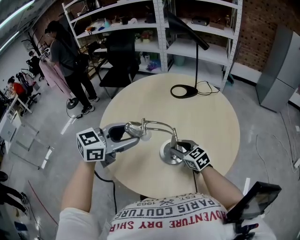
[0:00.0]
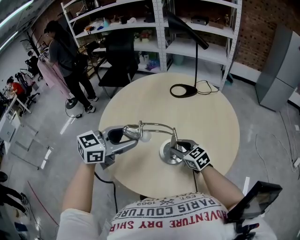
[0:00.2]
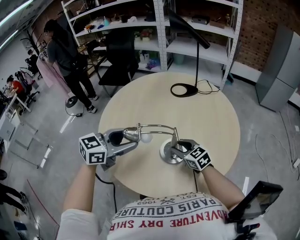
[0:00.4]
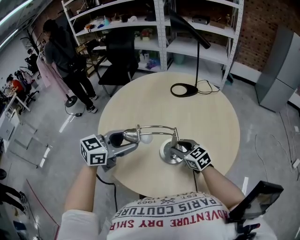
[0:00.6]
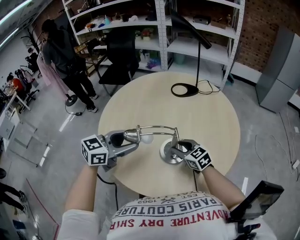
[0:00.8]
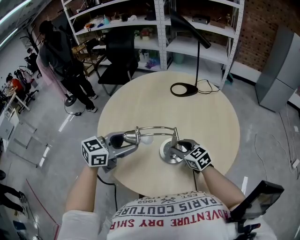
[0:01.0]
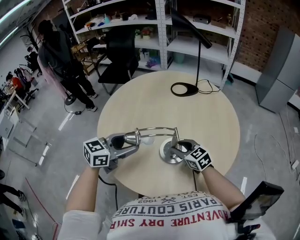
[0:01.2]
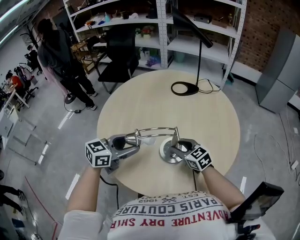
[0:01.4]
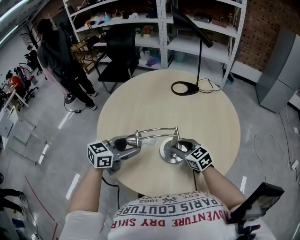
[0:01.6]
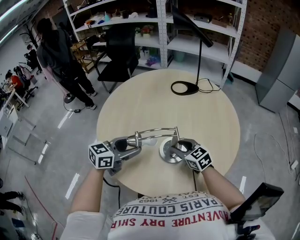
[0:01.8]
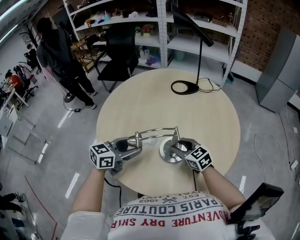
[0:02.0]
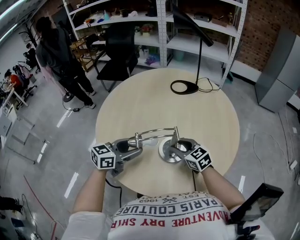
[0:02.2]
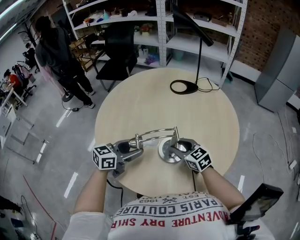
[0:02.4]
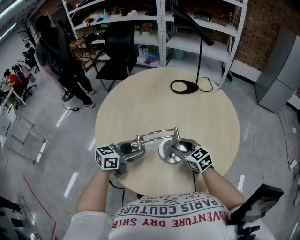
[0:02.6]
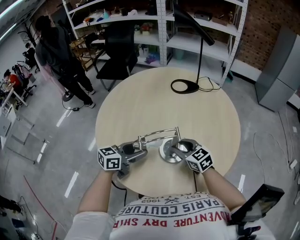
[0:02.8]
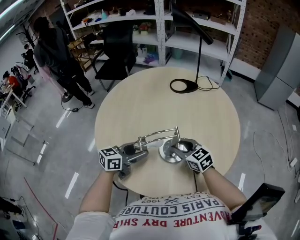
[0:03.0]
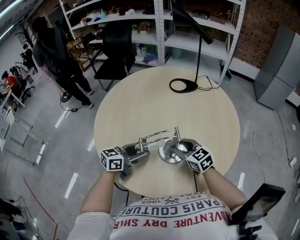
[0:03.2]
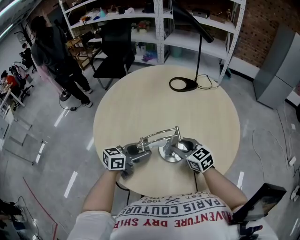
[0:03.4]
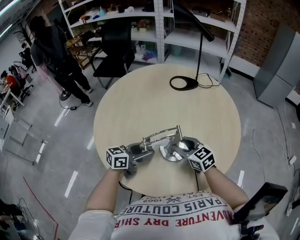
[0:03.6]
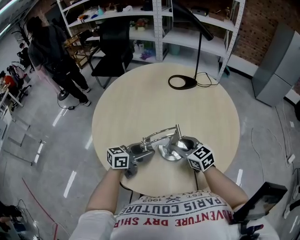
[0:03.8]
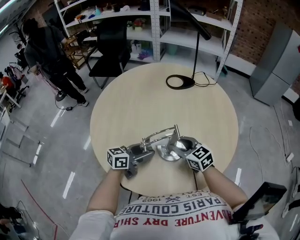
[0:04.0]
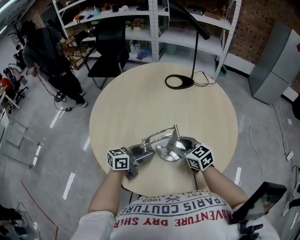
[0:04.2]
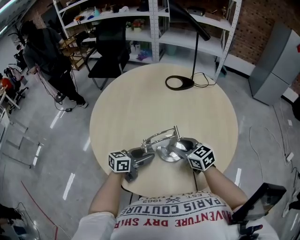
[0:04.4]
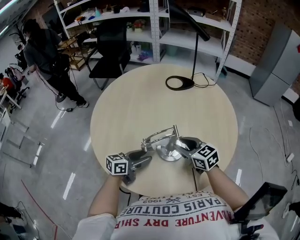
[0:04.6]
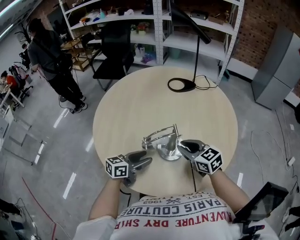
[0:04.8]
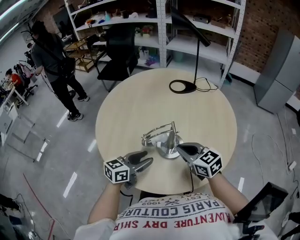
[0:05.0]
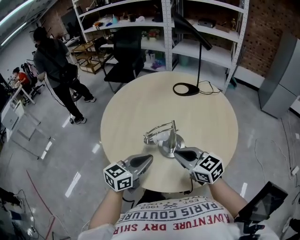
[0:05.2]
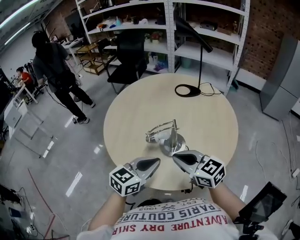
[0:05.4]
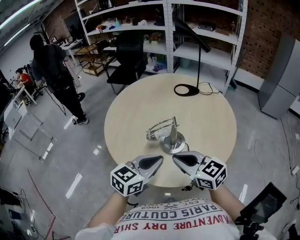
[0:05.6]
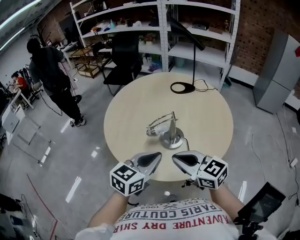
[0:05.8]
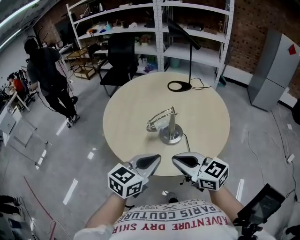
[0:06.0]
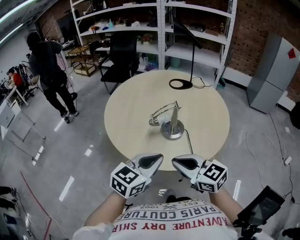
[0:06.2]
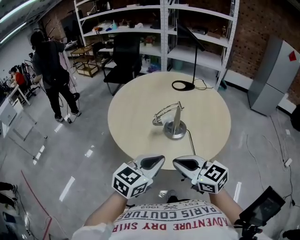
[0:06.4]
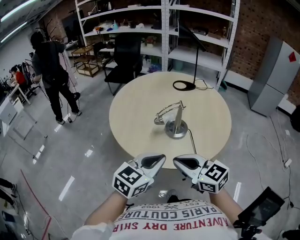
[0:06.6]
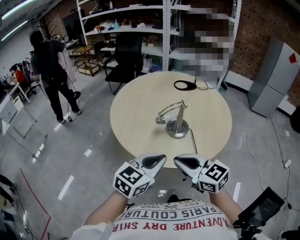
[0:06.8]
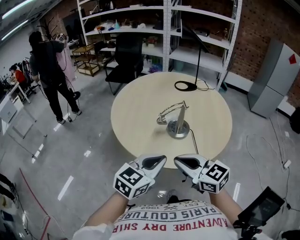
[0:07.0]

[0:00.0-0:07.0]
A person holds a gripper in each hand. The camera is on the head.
0:00.0 to 0:01.4: The left gripper shifts about 10 cm downward.
0:01.4 to 0:02.8: The left gripper moves downward, approximately 5 cm.
0:02.8 to 0:04.2: The left gripper is displaced to the right by some 5 cm.
0:04.2 to 0:05.6: Both grippers travel together upward and backward, about 20 cm. The left gripper changes its angle by some 30 degrees, and closes its fingers; the right gripper closes.
0:05.6 to 0:07.0: Both grippers move backward and to the left, some 15 cm.

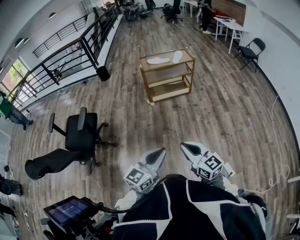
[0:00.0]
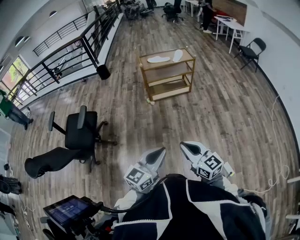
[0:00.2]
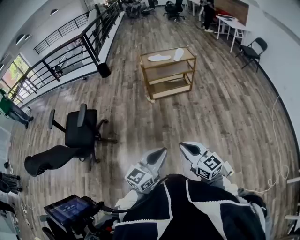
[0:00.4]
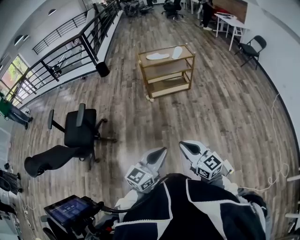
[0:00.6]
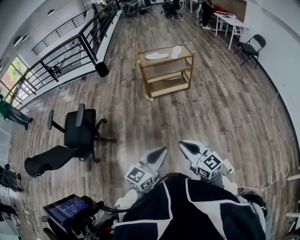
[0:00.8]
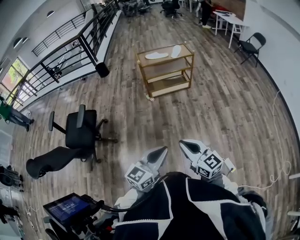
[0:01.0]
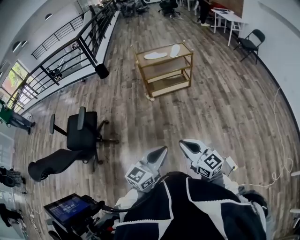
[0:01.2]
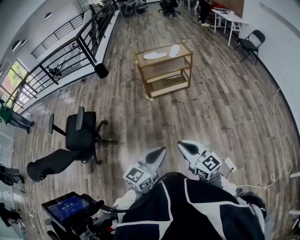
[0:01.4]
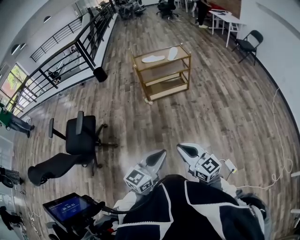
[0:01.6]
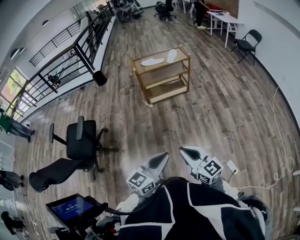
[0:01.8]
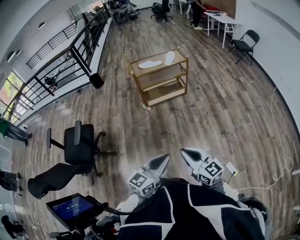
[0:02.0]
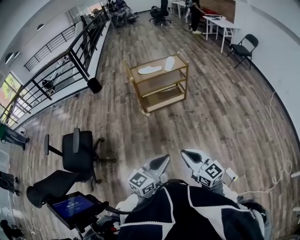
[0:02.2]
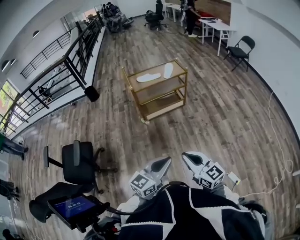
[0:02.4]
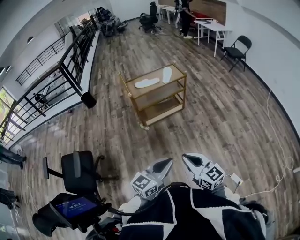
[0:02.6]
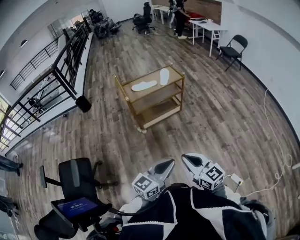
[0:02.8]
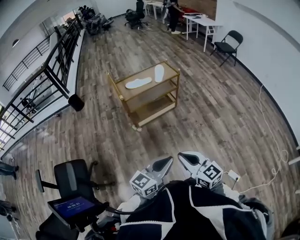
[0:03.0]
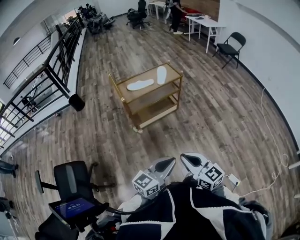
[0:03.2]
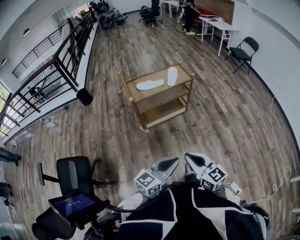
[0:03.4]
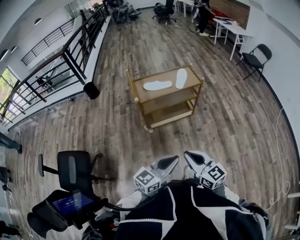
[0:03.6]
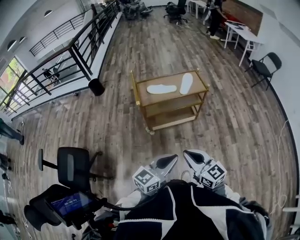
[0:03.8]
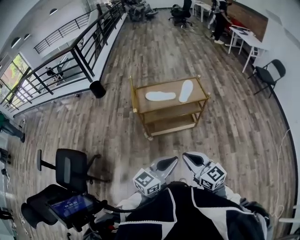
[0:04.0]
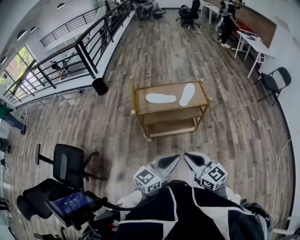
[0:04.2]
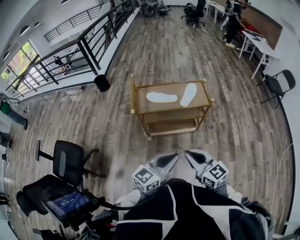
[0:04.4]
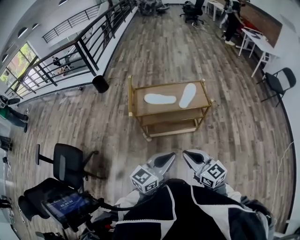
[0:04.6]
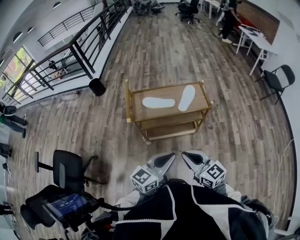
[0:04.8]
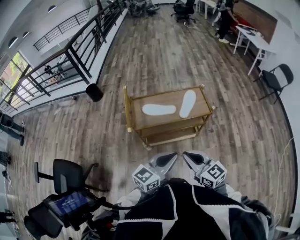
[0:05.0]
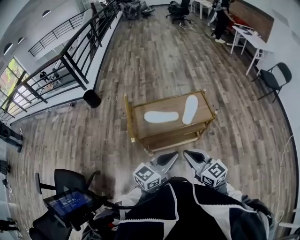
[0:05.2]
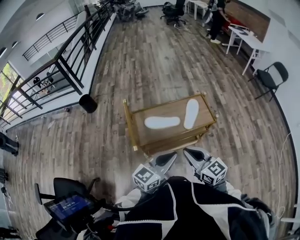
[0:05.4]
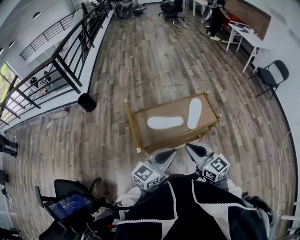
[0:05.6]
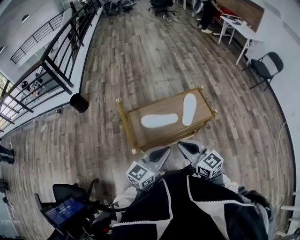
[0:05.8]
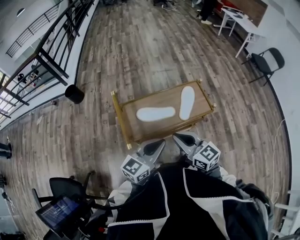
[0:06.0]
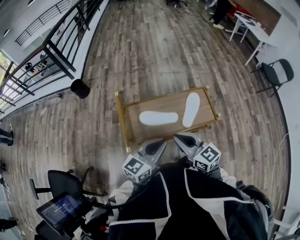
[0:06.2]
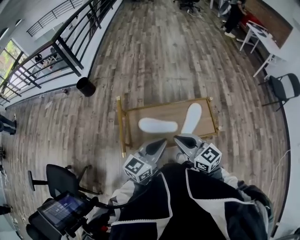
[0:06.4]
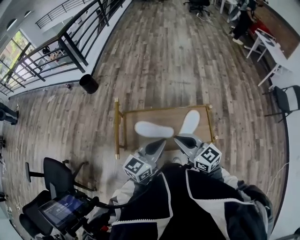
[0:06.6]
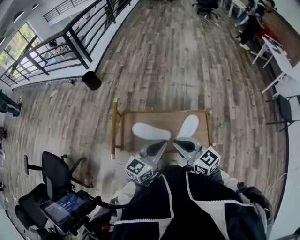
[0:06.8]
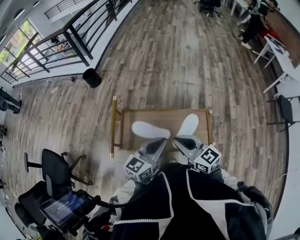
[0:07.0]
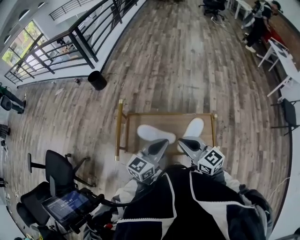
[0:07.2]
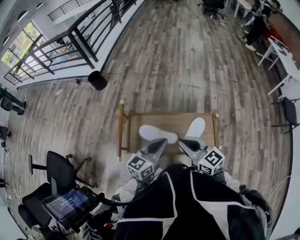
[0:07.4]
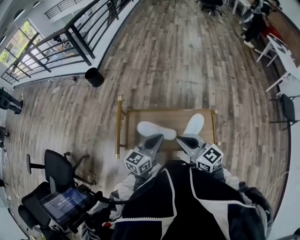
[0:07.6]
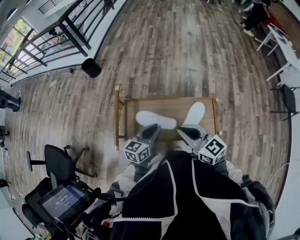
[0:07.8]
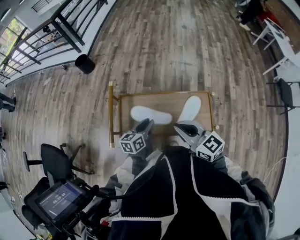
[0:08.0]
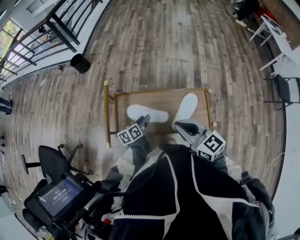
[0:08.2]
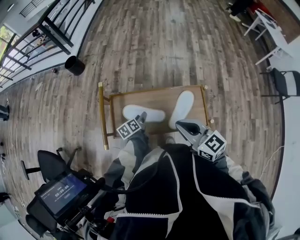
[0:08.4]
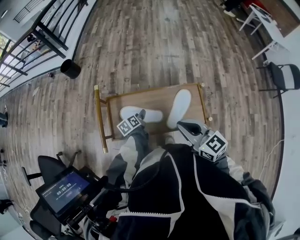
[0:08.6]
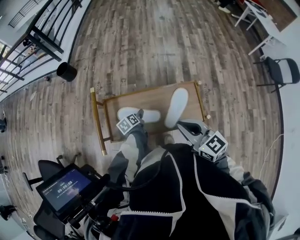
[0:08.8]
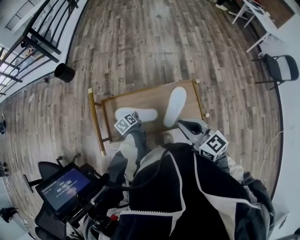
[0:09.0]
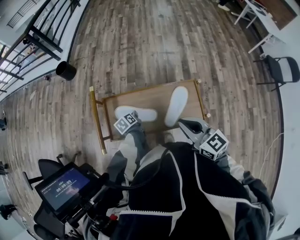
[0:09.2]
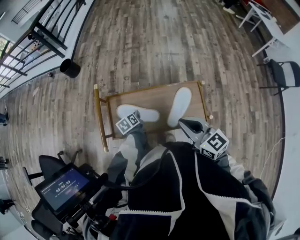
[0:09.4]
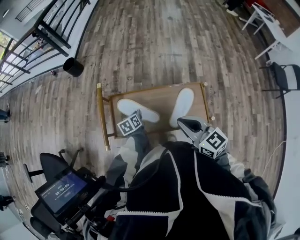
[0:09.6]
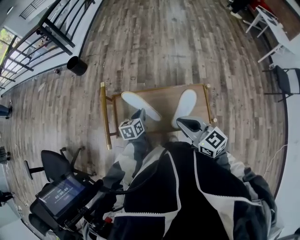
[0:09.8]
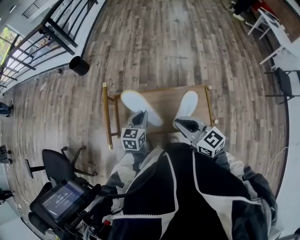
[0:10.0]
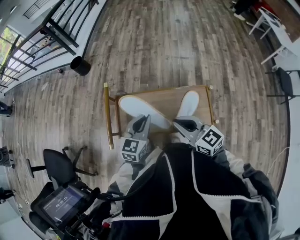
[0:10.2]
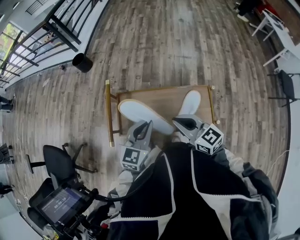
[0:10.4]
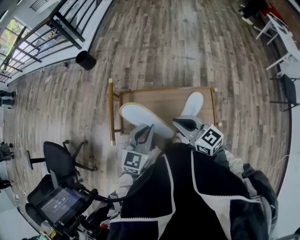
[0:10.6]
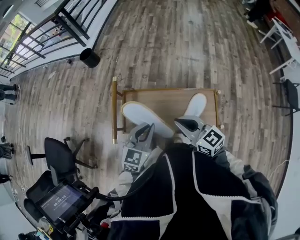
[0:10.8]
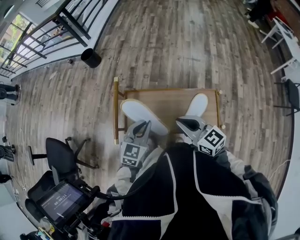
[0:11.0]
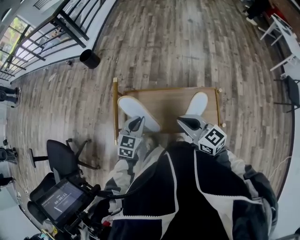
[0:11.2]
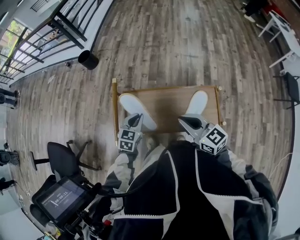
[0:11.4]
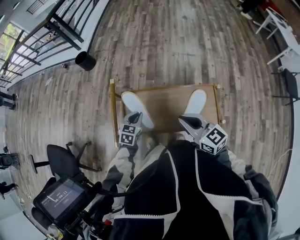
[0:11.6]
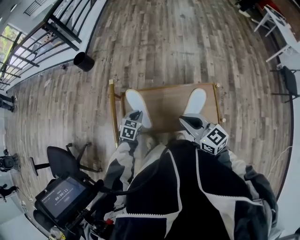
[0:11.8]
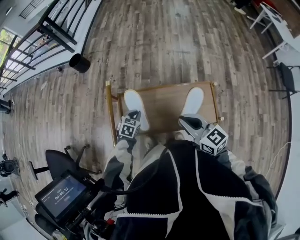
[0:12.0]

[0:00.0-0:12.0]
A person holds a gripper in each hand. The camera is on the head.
0:00.0 to 0:01.6: The grippers stay close to where they were, moving slightly.
0:01.6 to 0:03.0: Both grippers travel together forward, some 25 cm.
0:03.0 to 0:04.4: The two grippers go roughly 30 cm forward. The right gripper rotates roughly 20 degrees.
0:04.4 to 0:06.0: The grippers both shift forward and to the left by some 30 cm.
0:06.0 to 0:07.6: The two grippers go some 15 cm forward and to the right. The left gripper turns by some 30 degrees. The right gripper swivels some 20 degrees.
0:07.6 to 0:09.0: The right gripper moves to the right, some 5 cm, while the left gripper heads downward, covering roughly 25 cm, tilts its fingers some 40 degrees downward, and opens, then closes once more.
0:09.0 to 0:10.4: The left gripper shifts some 30 cm upward, and twists roughly 60 degrees clockwise, seen from behind, while the right gripper is displaced to the left by some 5 cm.
0:10.4 to 0:12.0: The left gripper travels downward and forward by some 25 cm, and tips its fingers downward by about 40 degrees.

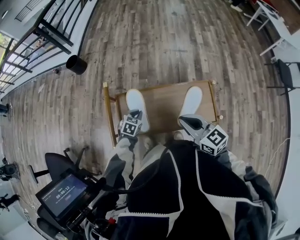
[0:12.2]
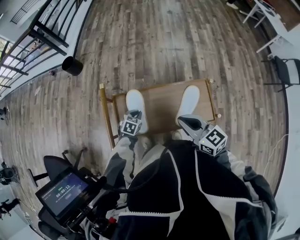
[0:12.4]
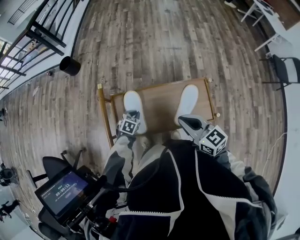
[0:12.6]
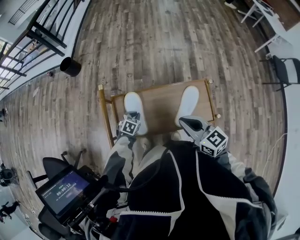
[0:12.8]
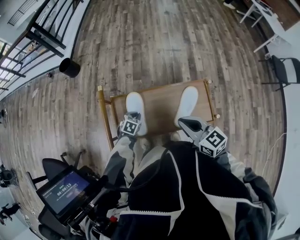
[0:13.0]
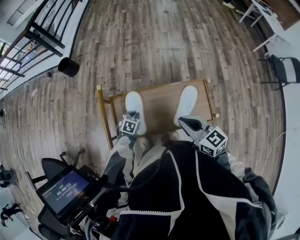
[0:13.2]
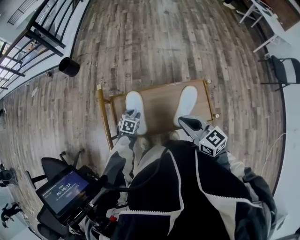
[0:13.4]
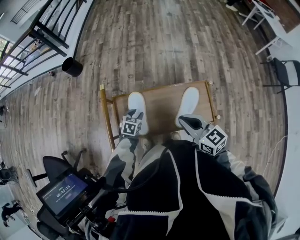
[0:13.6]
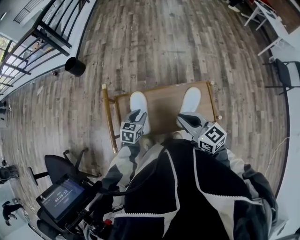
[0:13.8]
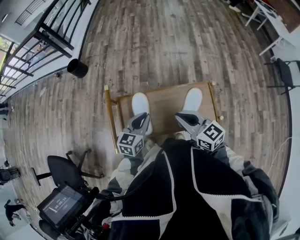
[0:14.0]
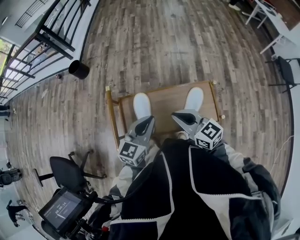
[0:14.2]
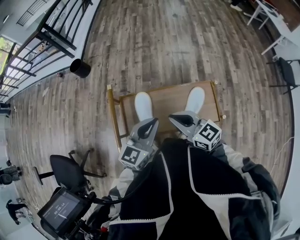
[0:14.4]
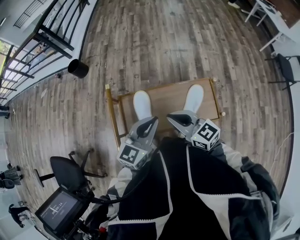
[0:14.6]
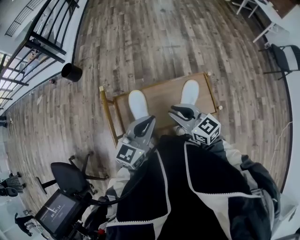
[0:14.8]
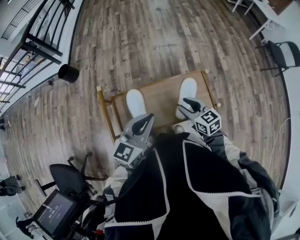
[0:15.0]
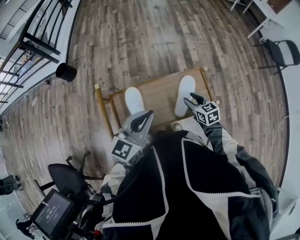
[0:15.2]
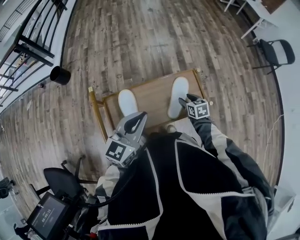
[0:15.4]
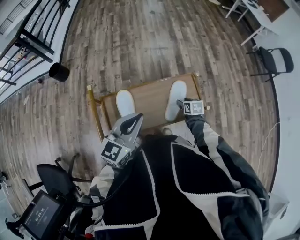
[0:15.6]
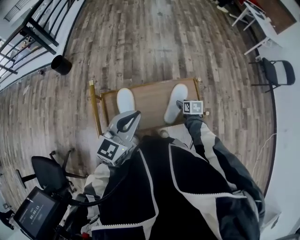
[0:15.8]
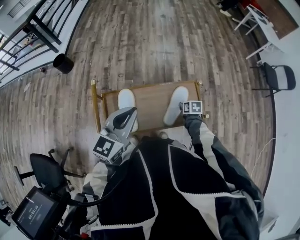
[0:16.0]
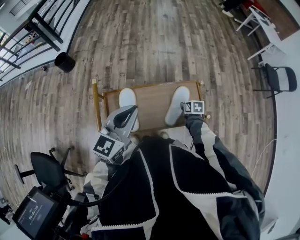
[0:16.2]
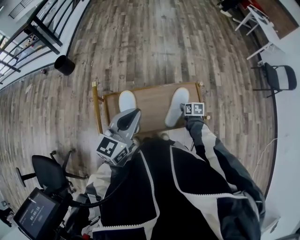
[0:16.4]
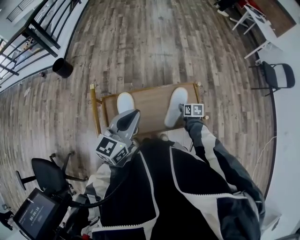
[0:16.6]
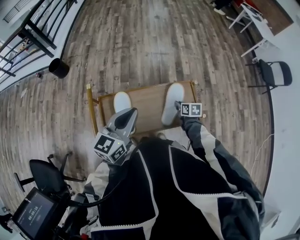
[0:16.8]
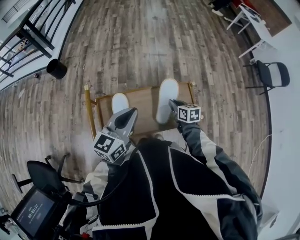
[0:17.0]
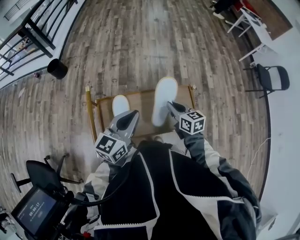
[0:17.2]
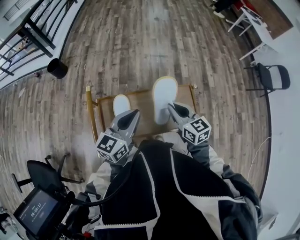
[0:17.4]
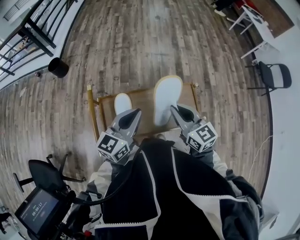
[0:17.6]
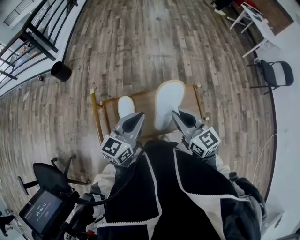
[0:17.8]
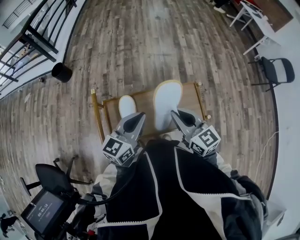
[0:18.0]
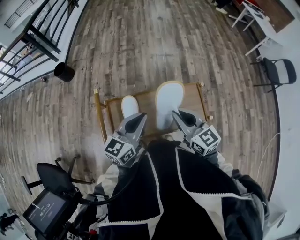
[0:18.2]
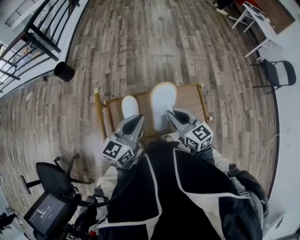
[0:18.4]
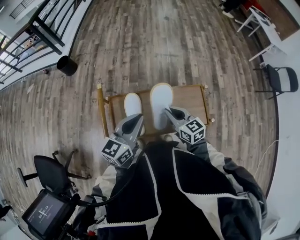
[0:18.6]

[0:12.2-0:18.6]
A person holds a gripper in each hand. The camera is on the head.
0:12.2 to 0:13.8: The left gripper travels upward by roughly 5 cm, and opens.
0:13.8 to 0:15.4: The right gripper is displaced downward and to the right by some 25 cm, tilts its fingers some 30 degrees downward, and opens up, while the left gripper heads upward, covering roughly 20 cm, points its fingers roughly 30 degrees further upward, and closes.
0:15.4 to 0:17.0: The right gripper ends up about 5 cm from where it was, and closes its fingers.
0:17.0 to 0:18.6: The right gripper goes about 15 cm to the left, upward and backward, and changes its angle by about 30 degrees.
